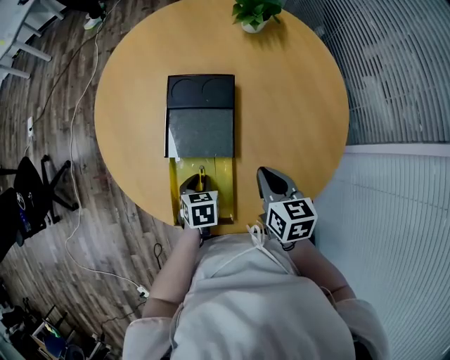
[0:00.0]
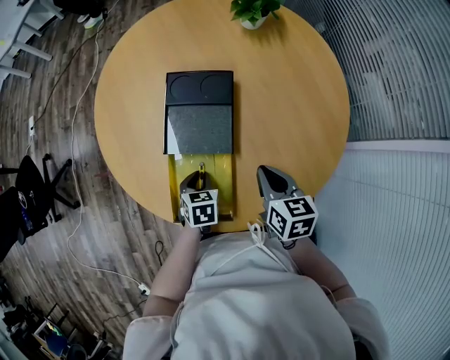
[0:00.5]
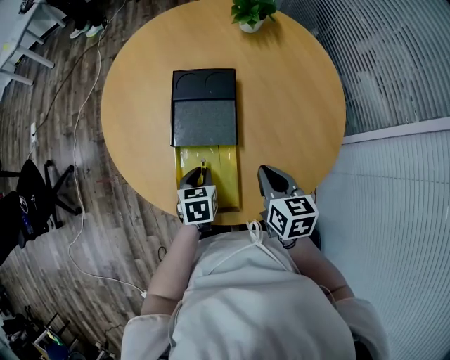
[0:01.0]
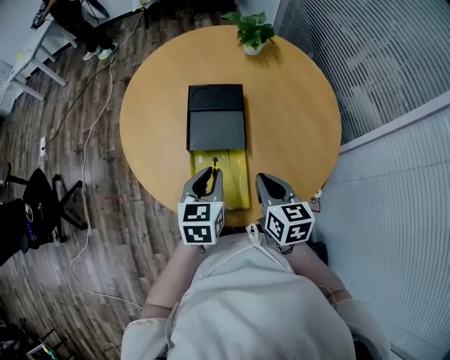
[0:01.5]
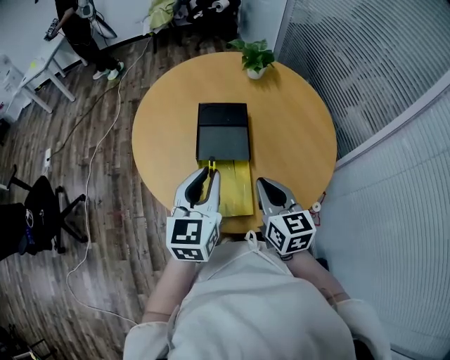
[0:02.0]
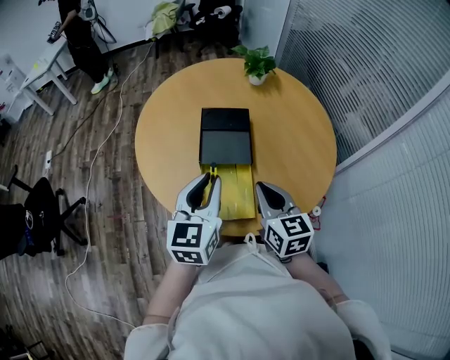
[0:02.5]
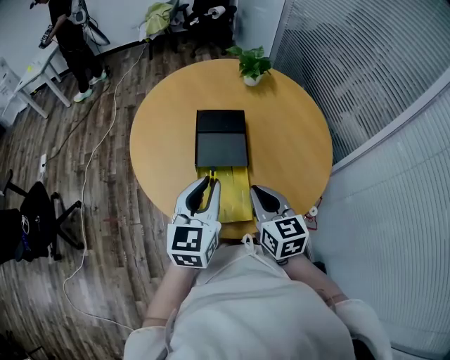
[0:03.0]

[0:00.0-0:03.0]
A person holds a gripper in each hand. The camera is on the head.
0:00.0 to 0:01.5: The right gripper goes about 10 cm backward, to the left and upward. The left gripper shifts approximately 20 cm upward, and swivels about 30 degrees.
0:01.5 to 0:03.0: The left gripper is displaced upward by roughly 10 cm, and turns by about 20 degrees. The right gripper goes roughly 5 cm upward.

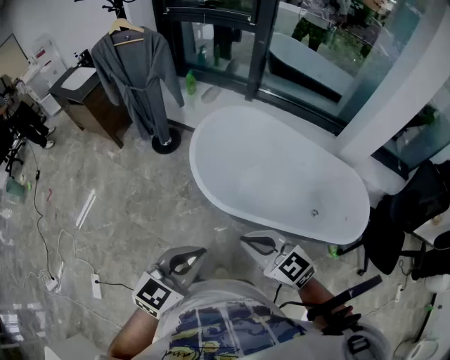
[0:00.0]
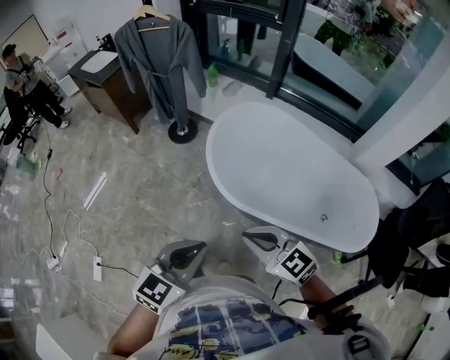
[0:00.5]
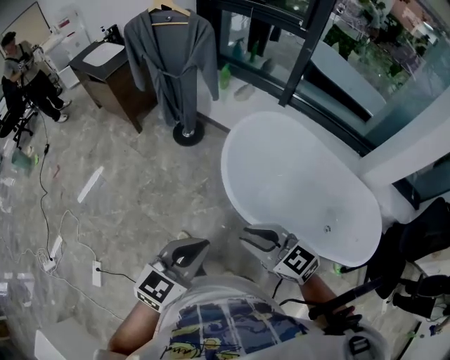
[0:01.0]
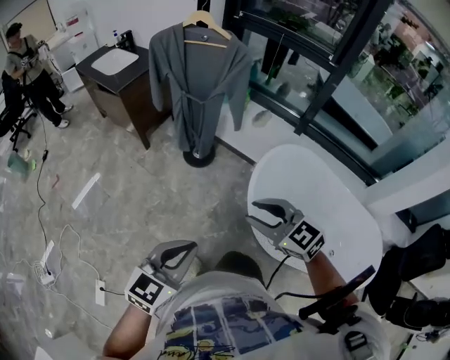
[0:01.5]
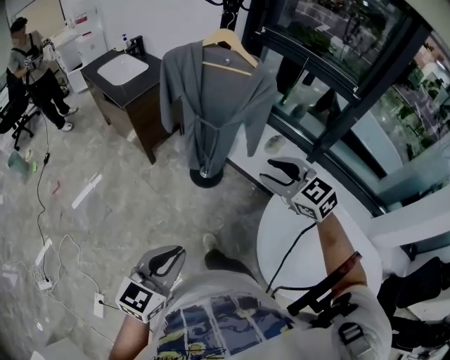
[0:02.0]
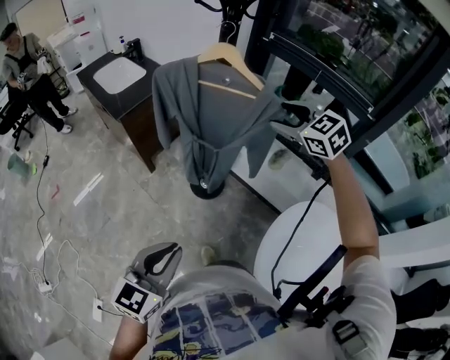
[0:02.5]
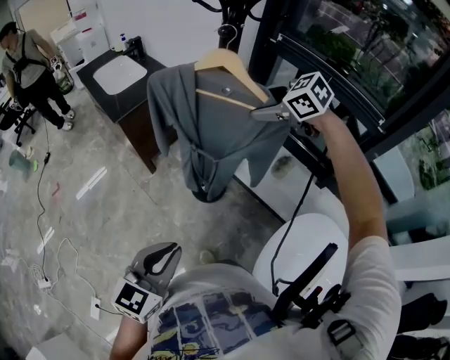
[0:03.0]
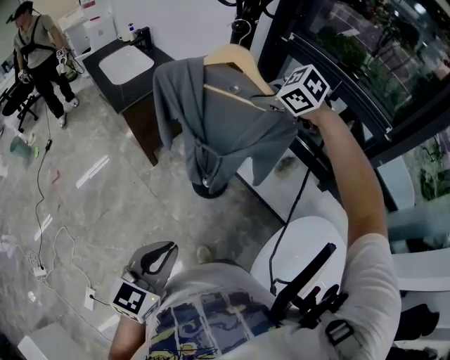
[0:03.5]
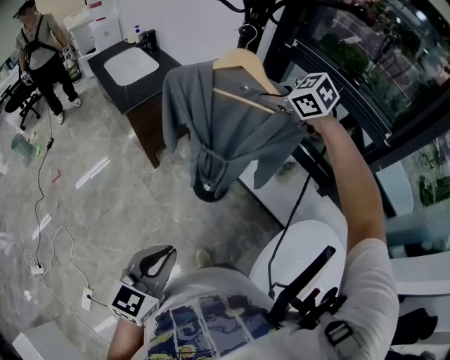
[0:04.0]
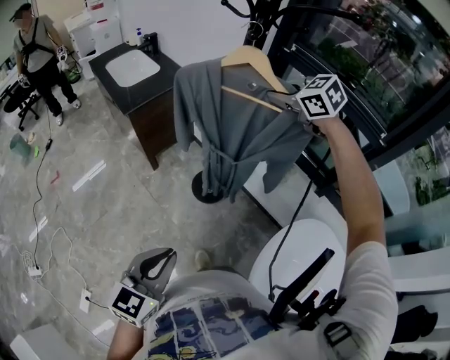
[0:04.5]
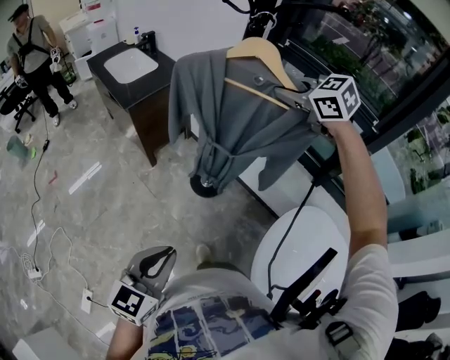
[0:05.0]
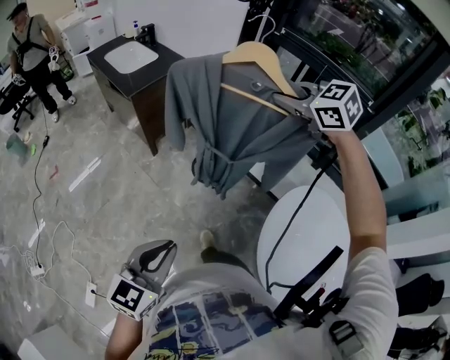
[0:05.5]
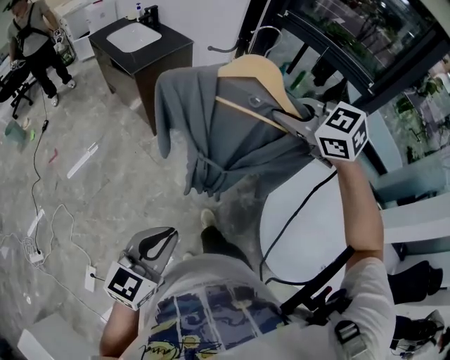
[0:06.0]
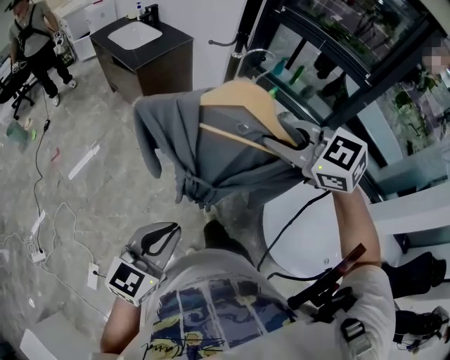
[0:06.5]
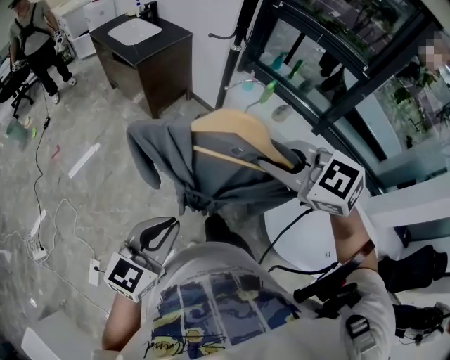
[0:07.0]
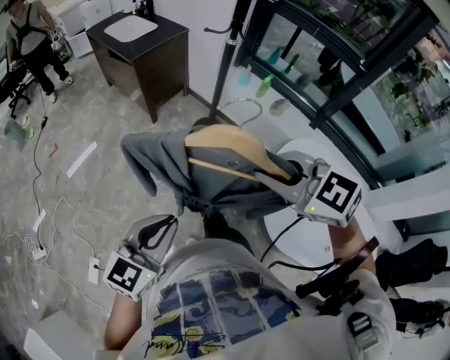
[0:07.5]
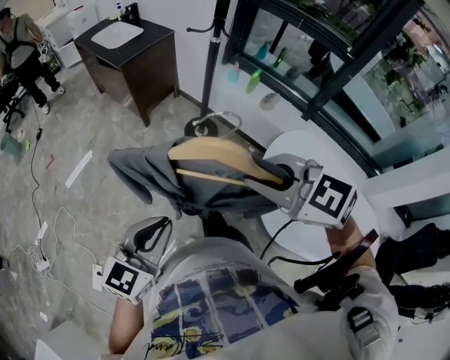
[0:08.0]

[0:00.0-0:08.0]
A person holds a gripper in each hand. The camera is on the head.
0:00.0 to 0:02.0: The two grippers travel together, forward and to the left, about 50 cm. The left gripper swivels about 20 degrees; the right gripper opens.
0:02.0 to 0:04.0: The left gripper is displaced forward by approximately 15 cm, while the right gripper goes roughly 40 cm forward, and closes up.
0:04.0 to 0:06.0: The right gripper heads backward, covering roughly 35 cm. The left gripper heads backward and to the left, covering about 20 cm.
0:06.0 to 0:08.0: The right gripper moves backward, some 25 cm. The left gripper heads backward, covering some 5 cm.

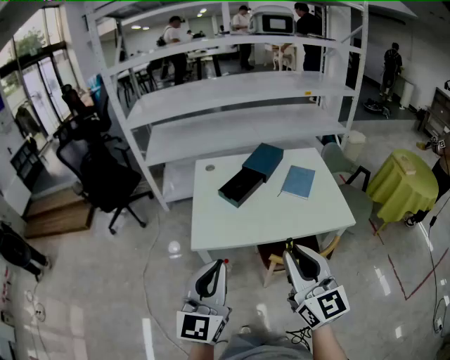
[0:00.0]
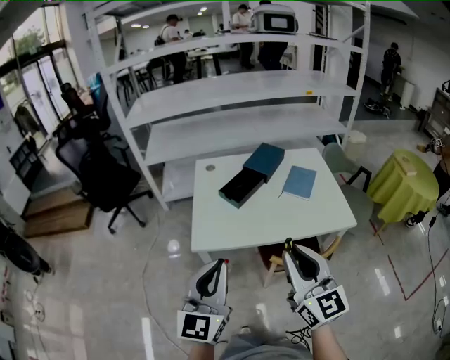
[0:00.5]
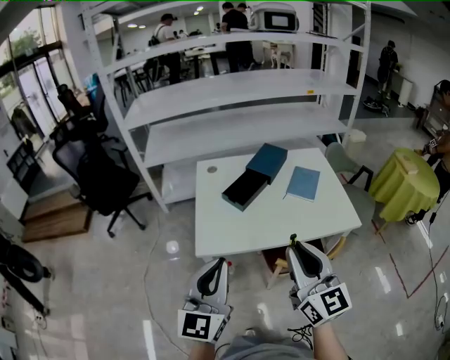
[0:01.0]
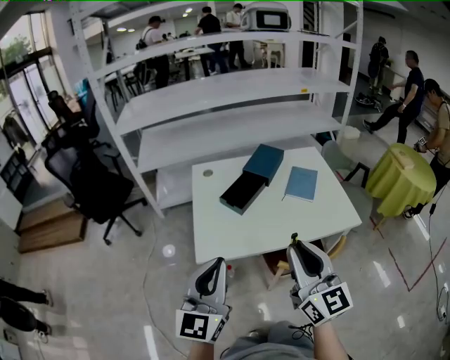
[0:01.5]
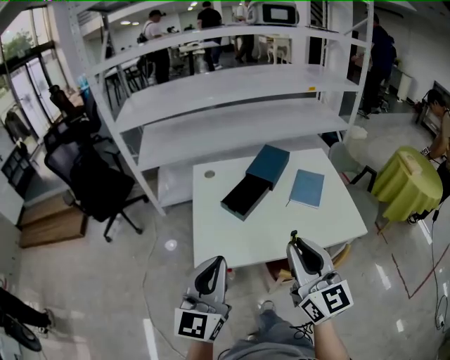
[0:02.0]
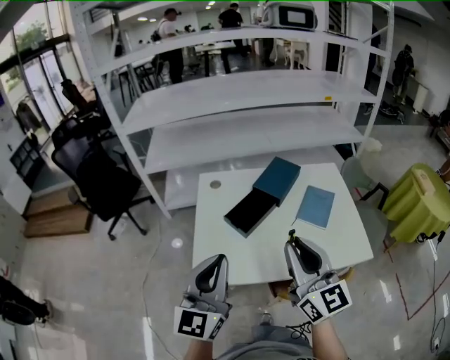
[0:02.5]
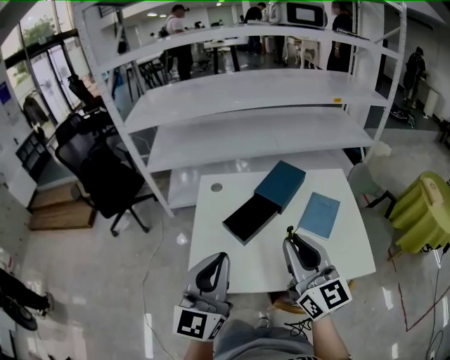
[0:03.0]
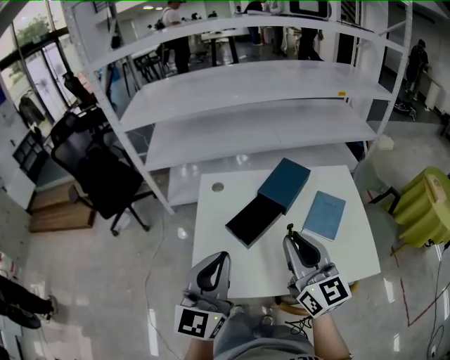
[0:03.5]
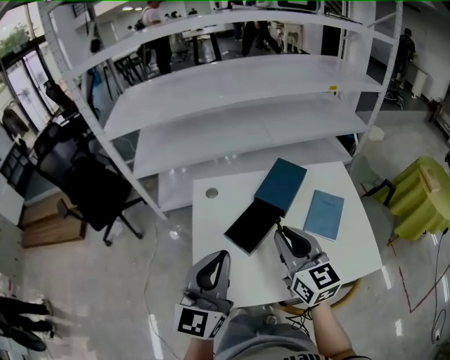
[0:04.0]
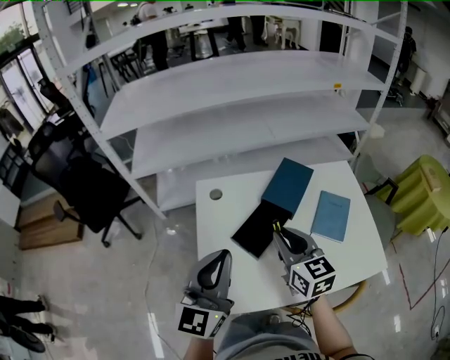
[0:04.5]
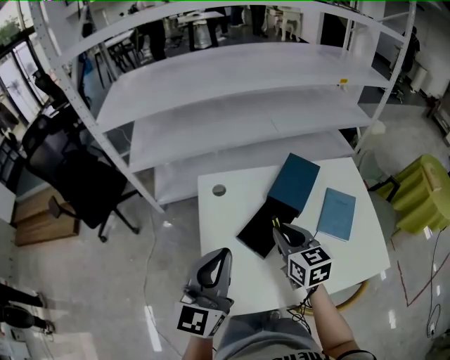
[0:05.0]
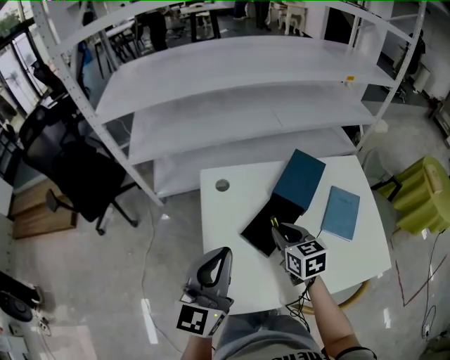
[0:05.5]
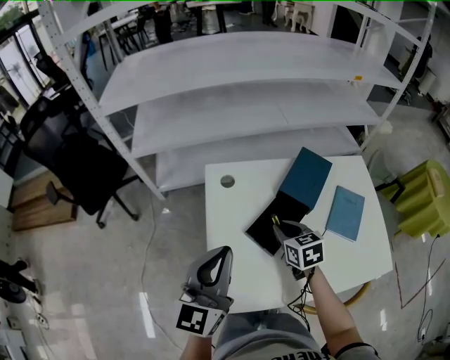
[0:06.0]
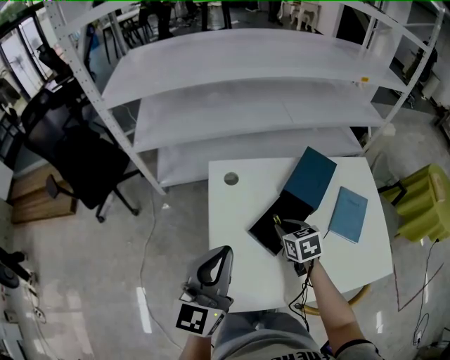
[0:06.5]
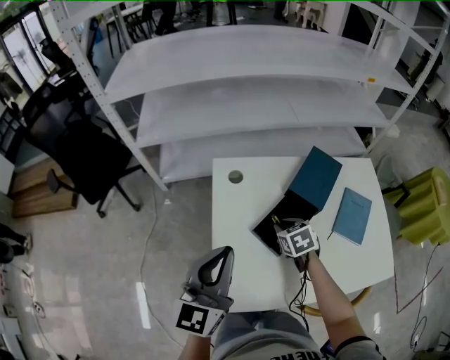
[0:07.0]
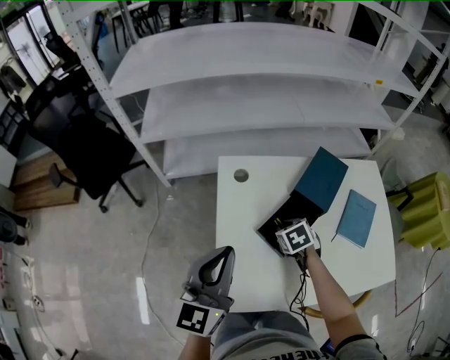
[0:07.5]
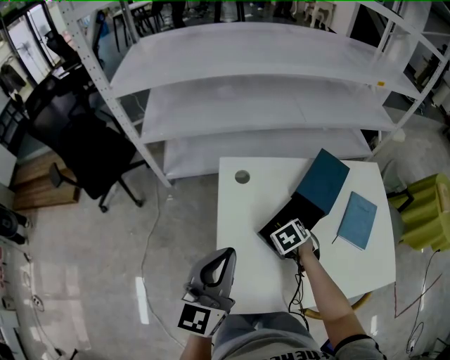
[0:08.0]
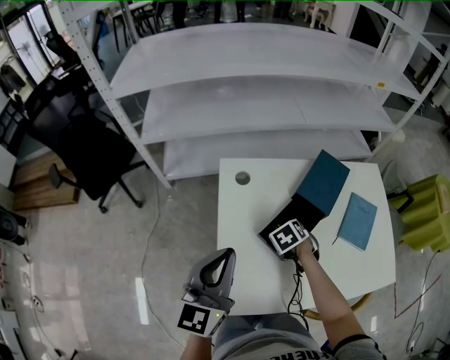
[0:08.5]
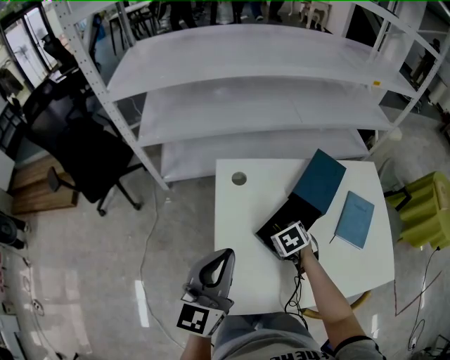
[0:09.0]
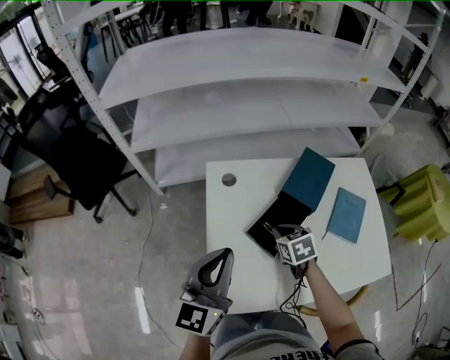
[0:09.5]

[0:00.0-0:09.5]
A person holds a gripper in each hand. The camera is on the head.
0:00.0 to 0:02.0: Both grippers move forward, about 10 cm.
0:02.0 to 0:04.0: The grippers both shift forward by some 20 cm.
0:04.0 to 0:05.5: The left gripper travels to the left and forward by roughly 10 cm. Meanwhile the right gripper heads downward and forward, covering some 15 cm, and rotates roughly 30 degrees.
0:05.5 to 0:07.5: The right gripper goes roughly 10 cm downward, and angles its fingers downward, by some 30 degrees.
0:07.5 to 0:09.5: The grippers stay close to where they were, moving slightly.

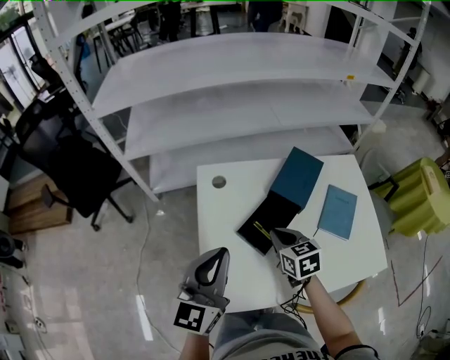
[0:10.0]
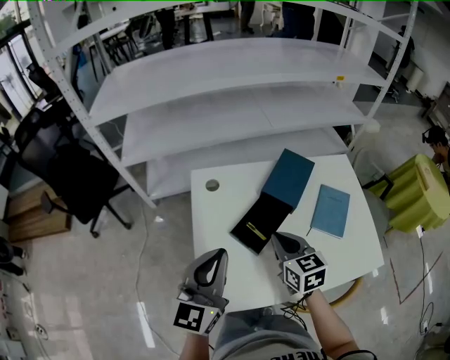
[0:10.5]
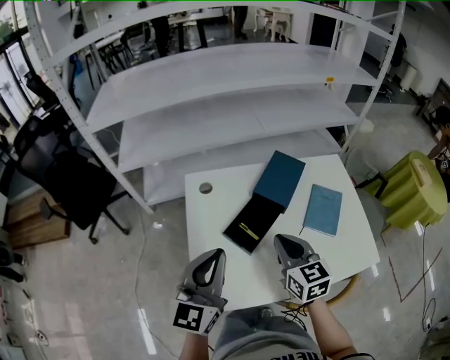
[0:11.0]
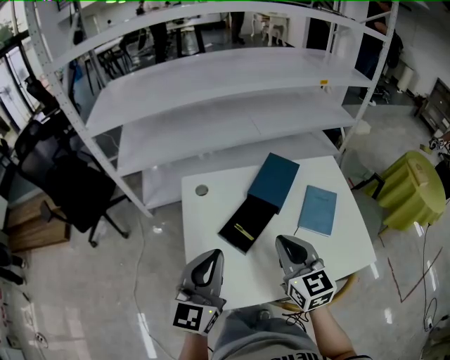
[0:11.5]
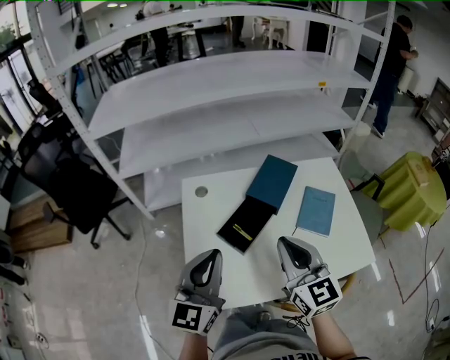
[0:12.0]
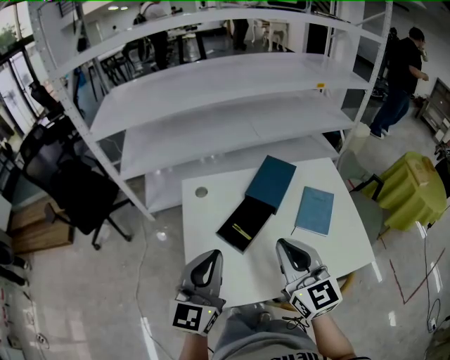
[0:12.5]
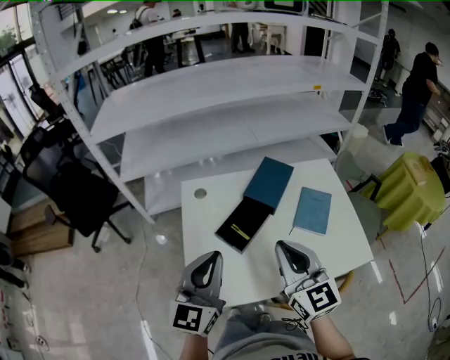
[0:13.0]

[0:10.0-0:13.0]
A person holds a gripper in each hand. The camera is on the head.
0:10.0 to 0:11.5: The right gripper goes about 15 cm upward, backward and to the right, and swivels approximately 30 degrees. Meanwhile the left gripper shifts by roughly 5 cm.
0:11.5 to 0:13.0: The right gripper is displaced upward and backward by approximately 10 cm.

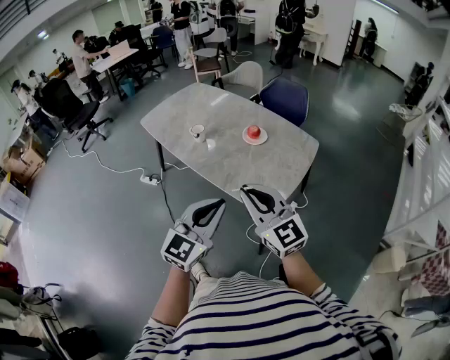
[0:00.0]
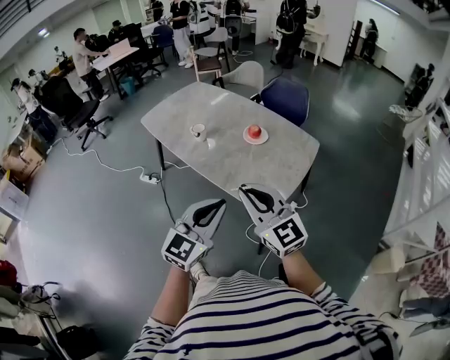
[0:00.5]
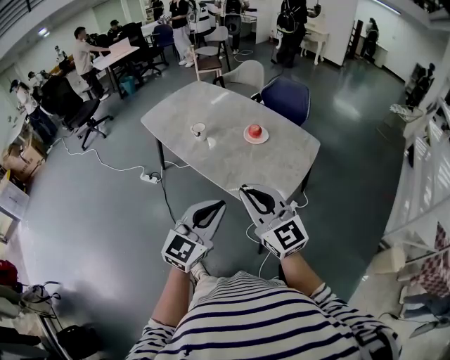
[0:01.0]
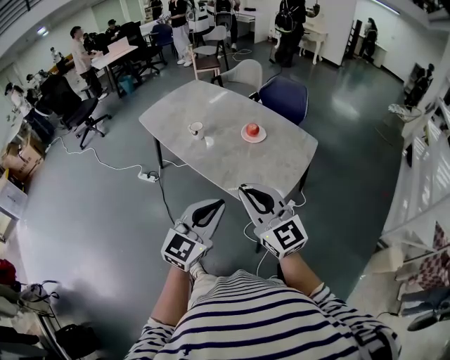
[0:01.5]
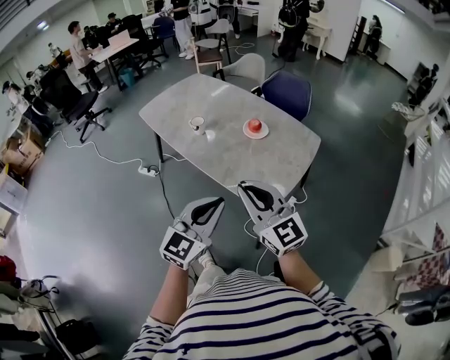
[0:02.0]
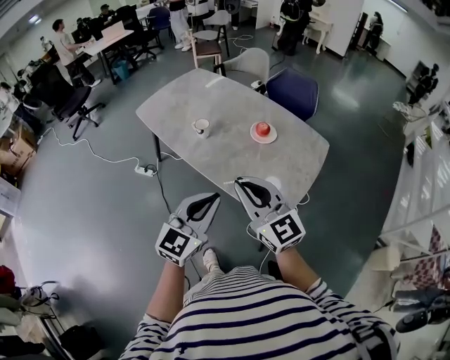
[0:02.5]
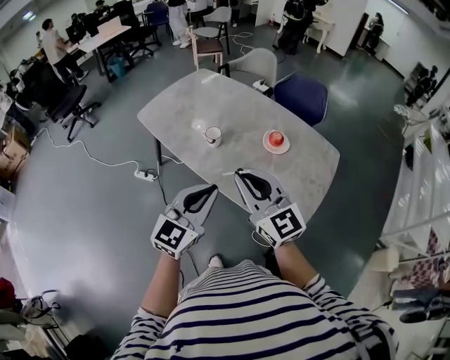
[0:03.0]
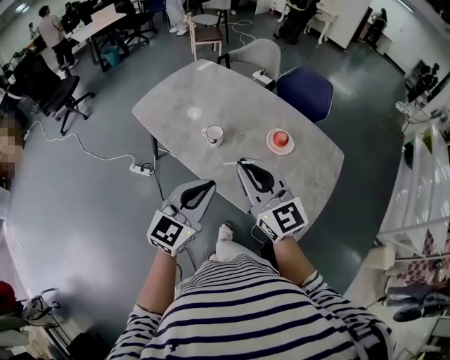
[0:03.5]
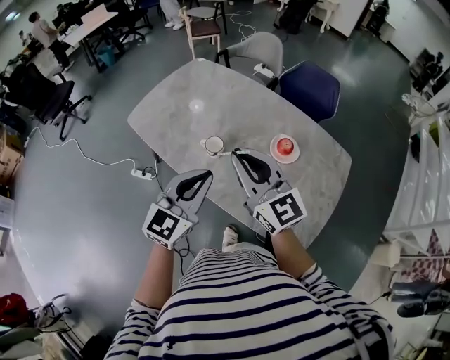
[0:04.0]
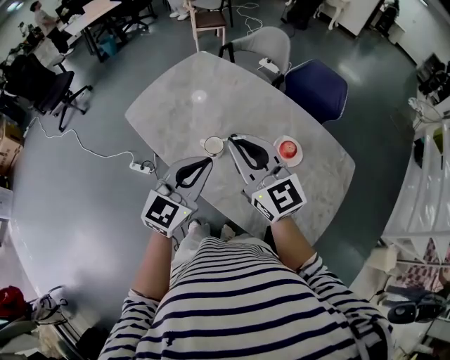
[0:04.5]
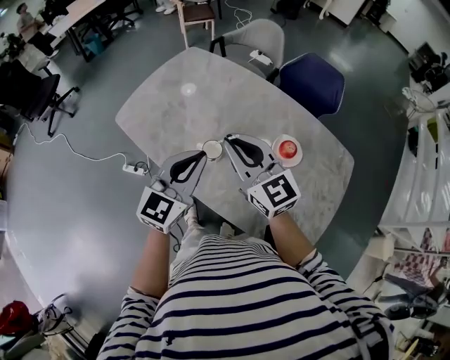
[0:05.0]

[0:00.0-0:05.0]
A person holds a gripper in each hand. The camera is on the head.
0:00.0 to 0:02.5: Both grippers move forward and to the left, some 10 cm.
0:02.5 to 0:05.0: The two grippers travel together, forward, some 40 cm.
